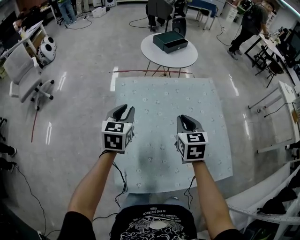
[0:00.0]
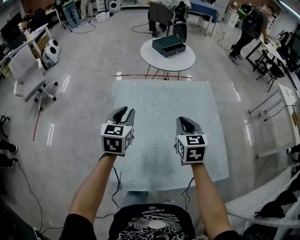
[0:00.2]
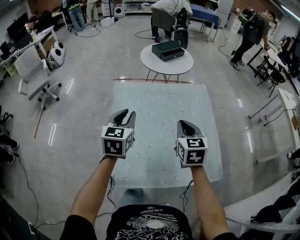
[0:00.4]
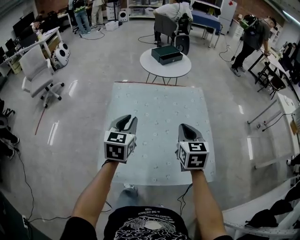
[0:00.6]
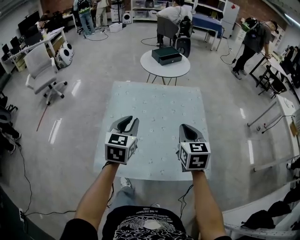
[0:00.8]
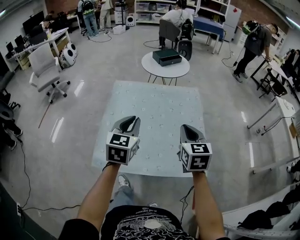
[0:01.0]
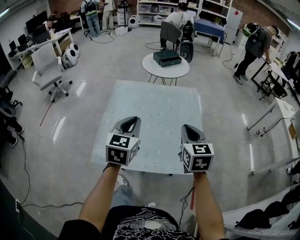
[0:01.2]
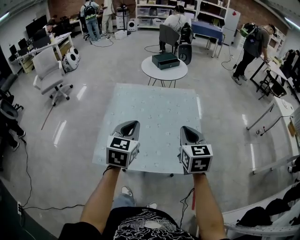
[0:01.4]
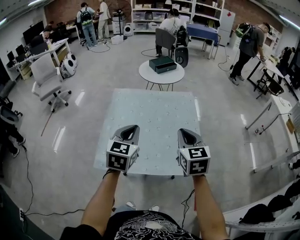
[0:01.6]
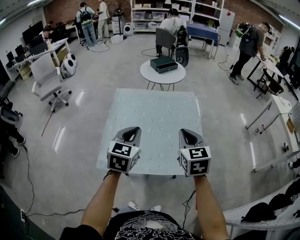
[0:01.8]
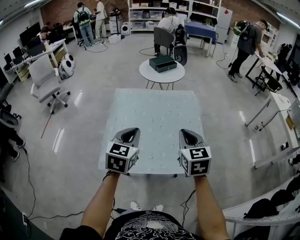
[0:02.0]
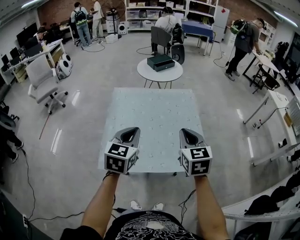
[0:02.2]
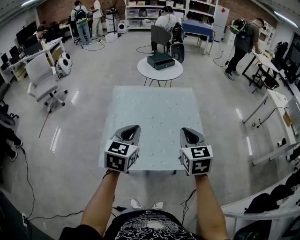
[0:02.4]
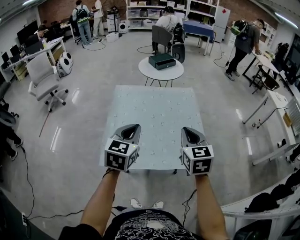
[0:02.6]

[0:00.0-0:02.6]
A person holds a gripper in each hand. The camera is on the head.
0:00.0 to 0:01.2: The right gripper moves to the right, backward and upward, approximately 25 cm. The left gripper goes roughly 30 cm backward, to the right and upward.
0:01.2 to 0:02.6: The grippers both shift backward by about 5 cm.

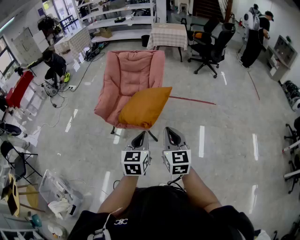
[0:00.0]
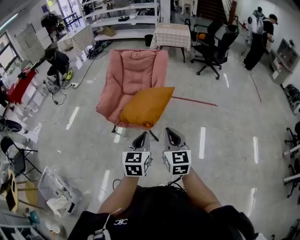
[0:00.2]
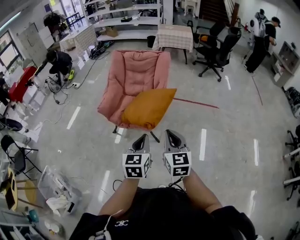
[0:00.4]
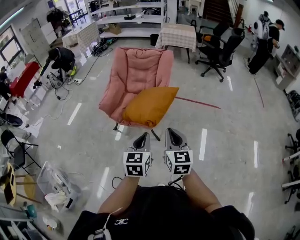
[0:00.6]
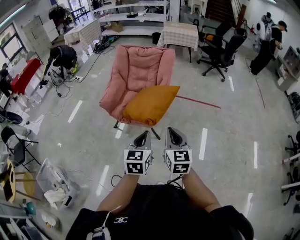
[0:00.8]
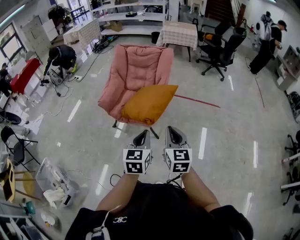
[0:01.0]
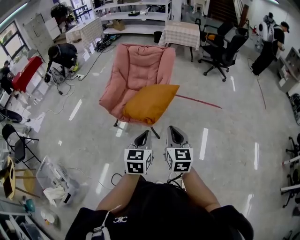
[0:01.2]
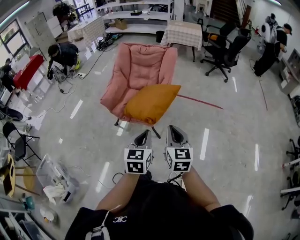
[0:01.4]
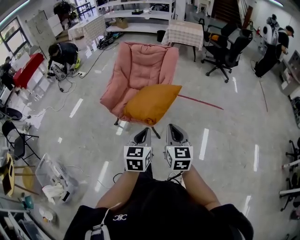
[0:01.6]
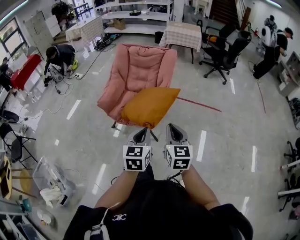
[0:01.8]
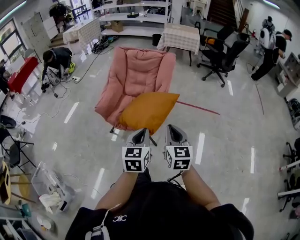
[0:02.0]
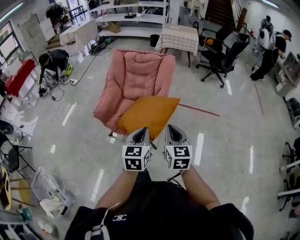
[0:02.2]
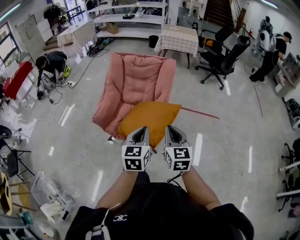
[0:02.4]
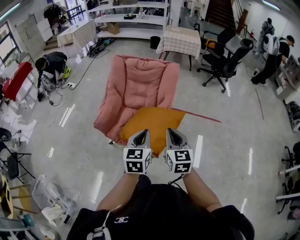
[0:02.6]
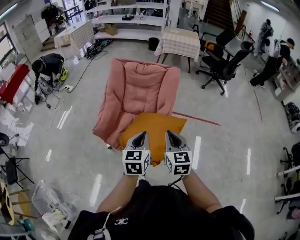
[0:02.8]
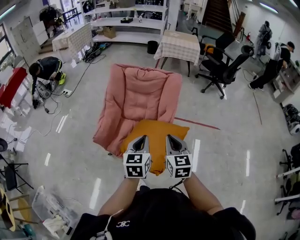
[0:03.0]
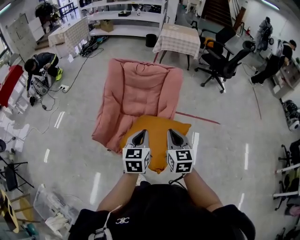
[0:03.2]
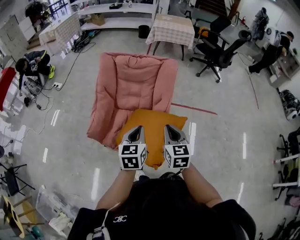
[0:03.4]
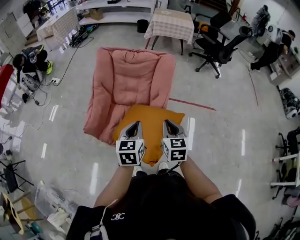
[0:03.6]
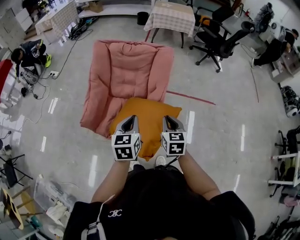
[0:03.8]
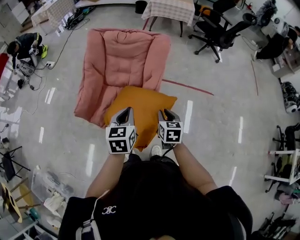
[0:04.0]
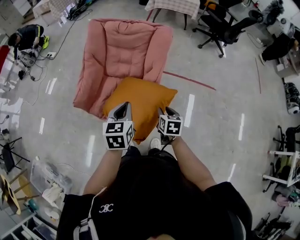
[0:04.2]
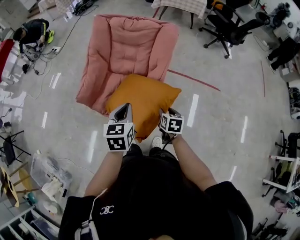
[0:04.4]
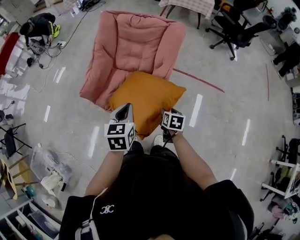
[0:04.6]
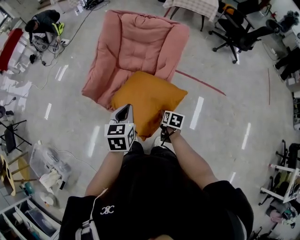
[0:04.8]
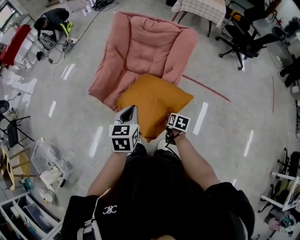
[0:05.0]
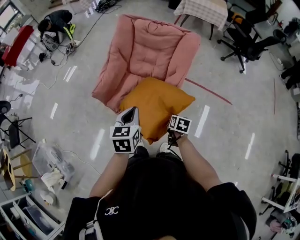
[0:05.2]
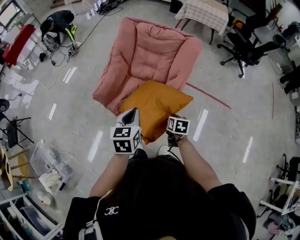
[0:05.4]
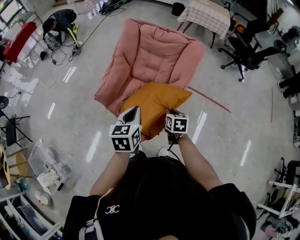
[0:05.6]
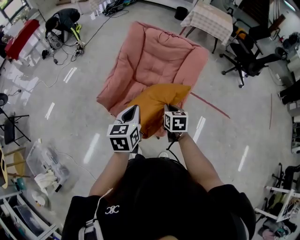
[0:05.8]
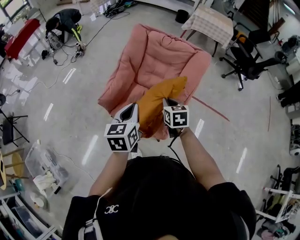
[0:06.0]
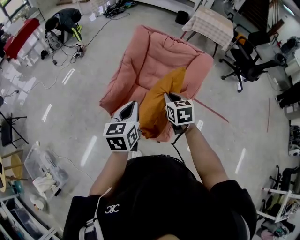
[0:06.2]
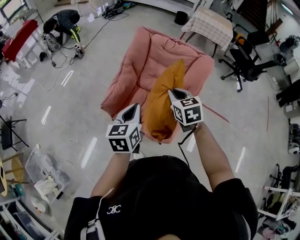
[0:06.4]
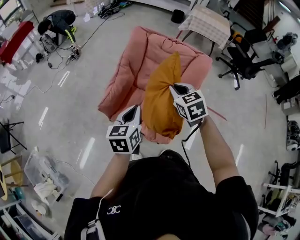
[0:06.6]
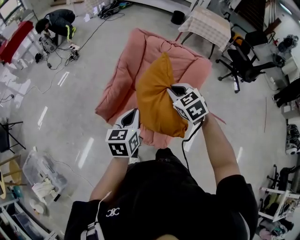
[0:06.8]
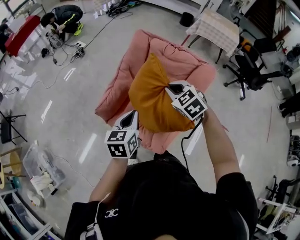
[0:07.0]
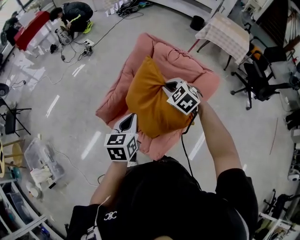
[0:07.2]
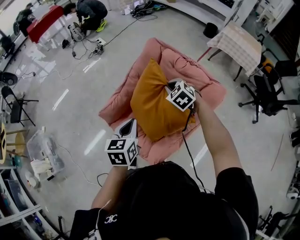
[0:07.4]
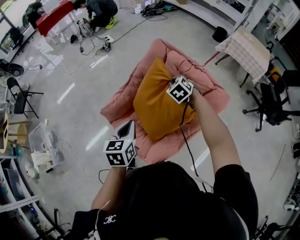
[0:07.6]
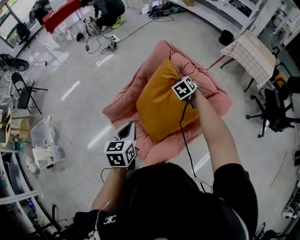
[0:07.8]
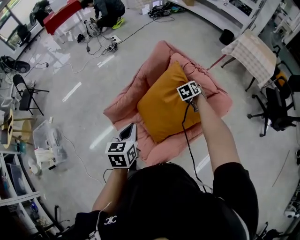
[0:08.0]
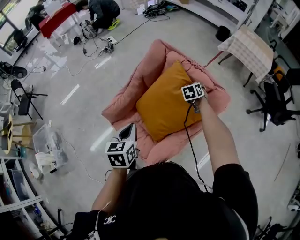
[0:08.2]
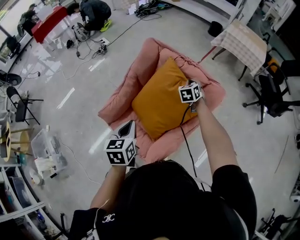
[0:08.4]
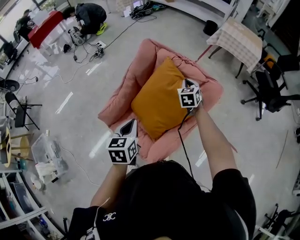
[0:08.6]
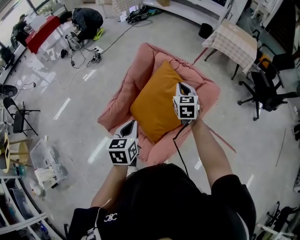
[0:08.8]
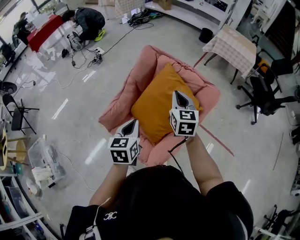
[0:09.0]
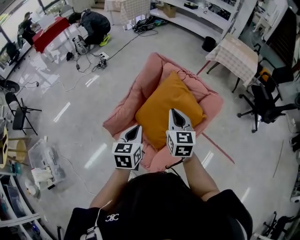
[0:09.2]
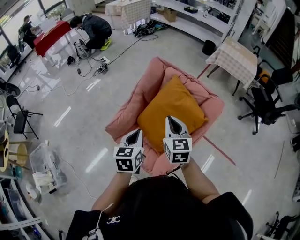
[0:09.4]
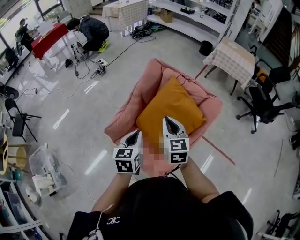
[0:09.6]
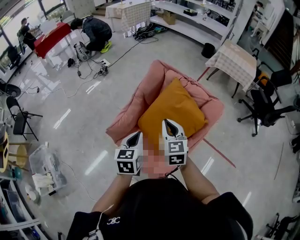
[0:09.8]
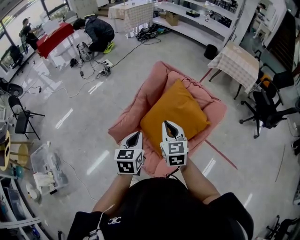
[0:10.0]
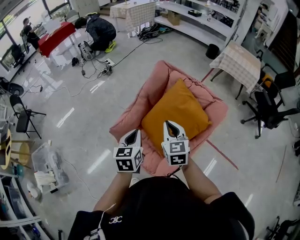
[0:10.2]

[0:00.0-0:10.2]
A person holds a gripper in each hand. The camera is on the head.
0:00.0 to 0:01.4: The grippers stay close to where they were, moving slightly.
0:01.4 to 0:03.0: The two grippers go roughly 30 cm forward.
0:03.0 to 0:04.4: The right gripper heads downward and to the right, covering some 25 cm, angles its fingers downward, by roughly 30 degrees, and opens its fingers, while the left gripper travels downward by roughly 5 cm.
0:04.4 to 0:05.8: The left gripper heads to the left, covering roughly 10 cm. The right gripper travels to the left, forward and upward by some 20 cm, swivels about 20 degrees, and closes up.
0:05.8 to 0:07.2: The left gripper travels forward by approximately 10 cm; the right gripper travels forward and upward by roughly 25 cm, and rotates around the line of its fingers by about 60 degrees, counterclockwise from behind.
0:07.2 to 0:08.8: The right gripper is displaced to the right and forward by roughly 10 cm, rotates approximately 50 degrees, and opens and closes again.
0:08.8 to 0:10.2: The right gripper travels backward and to the left by some 20 cm. The left gripper goes about 5 cm to the left.

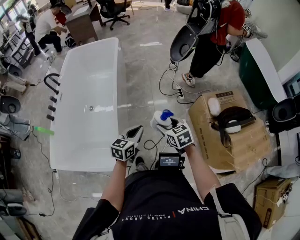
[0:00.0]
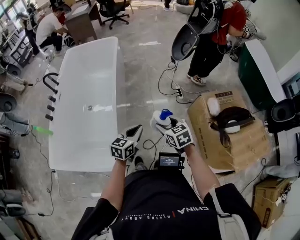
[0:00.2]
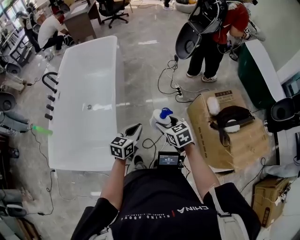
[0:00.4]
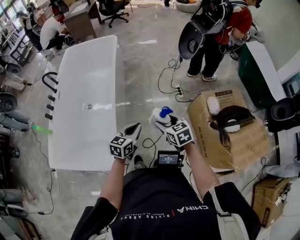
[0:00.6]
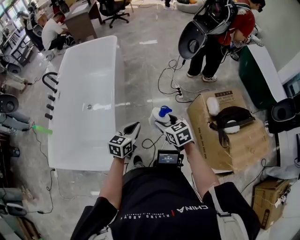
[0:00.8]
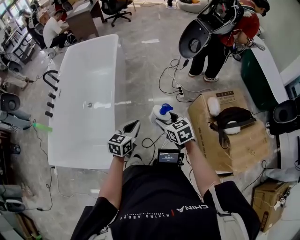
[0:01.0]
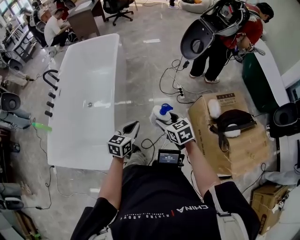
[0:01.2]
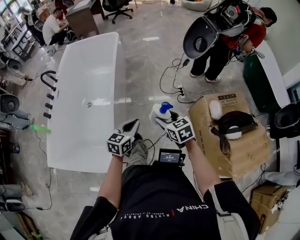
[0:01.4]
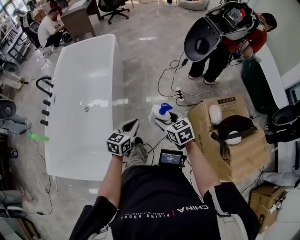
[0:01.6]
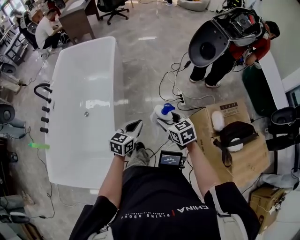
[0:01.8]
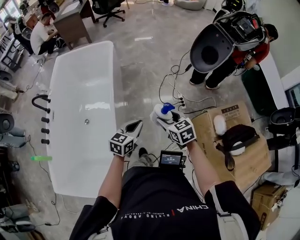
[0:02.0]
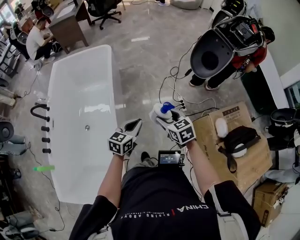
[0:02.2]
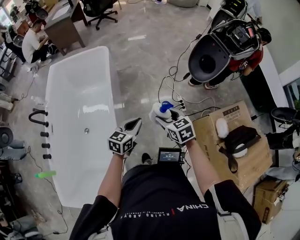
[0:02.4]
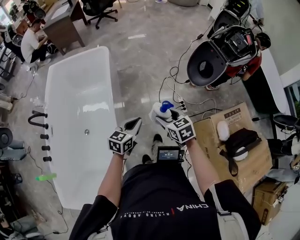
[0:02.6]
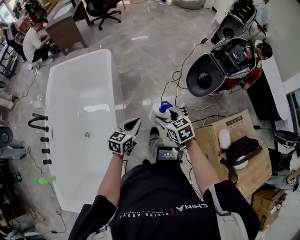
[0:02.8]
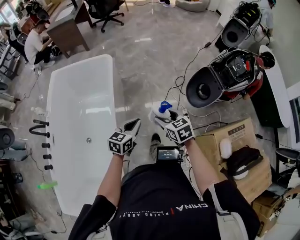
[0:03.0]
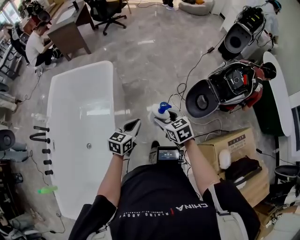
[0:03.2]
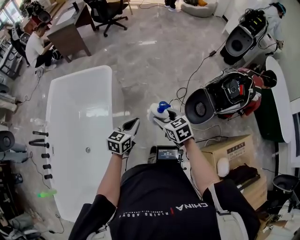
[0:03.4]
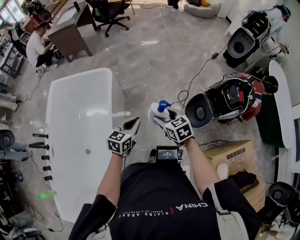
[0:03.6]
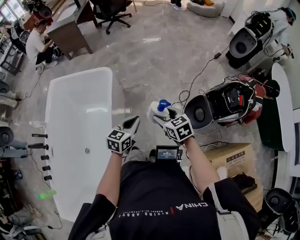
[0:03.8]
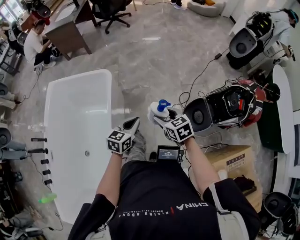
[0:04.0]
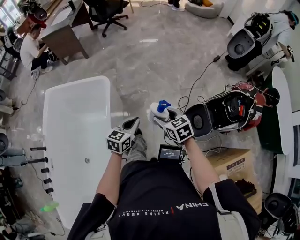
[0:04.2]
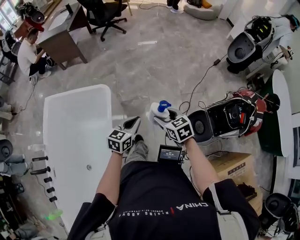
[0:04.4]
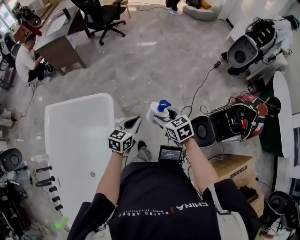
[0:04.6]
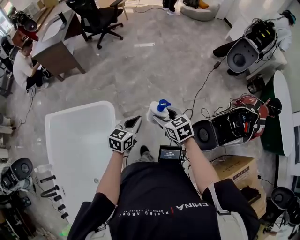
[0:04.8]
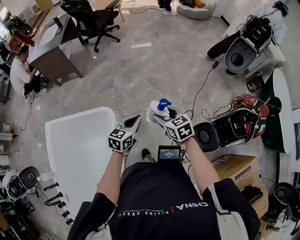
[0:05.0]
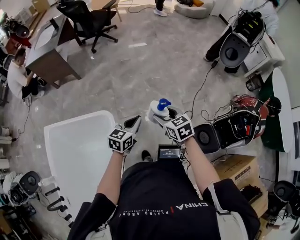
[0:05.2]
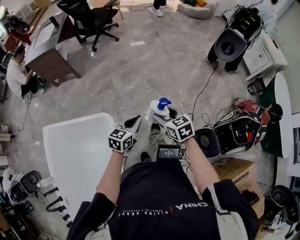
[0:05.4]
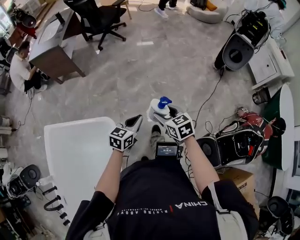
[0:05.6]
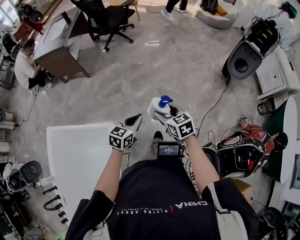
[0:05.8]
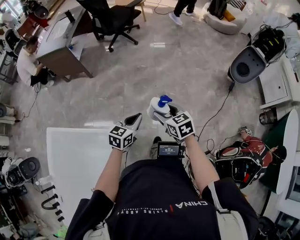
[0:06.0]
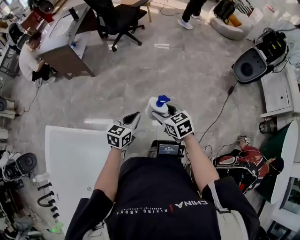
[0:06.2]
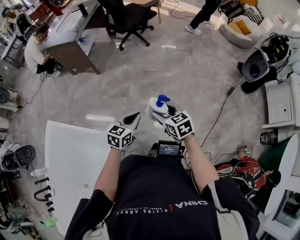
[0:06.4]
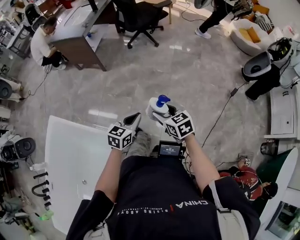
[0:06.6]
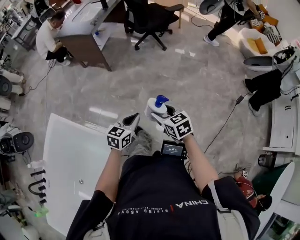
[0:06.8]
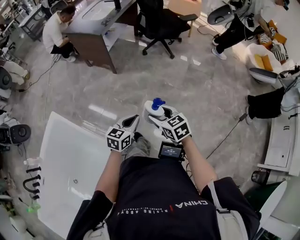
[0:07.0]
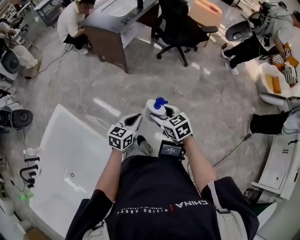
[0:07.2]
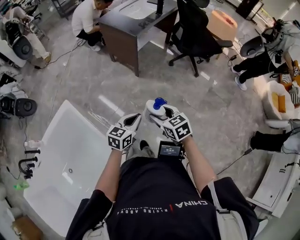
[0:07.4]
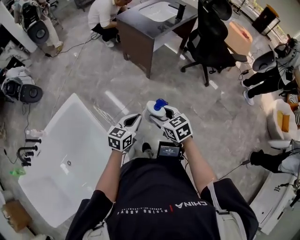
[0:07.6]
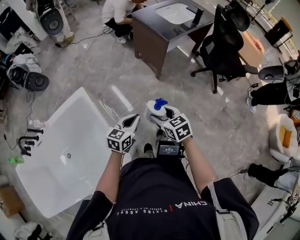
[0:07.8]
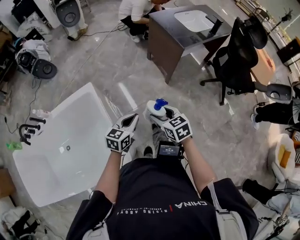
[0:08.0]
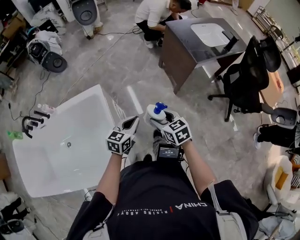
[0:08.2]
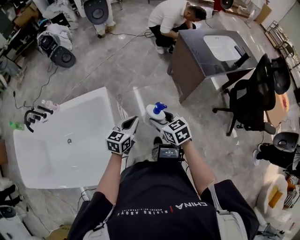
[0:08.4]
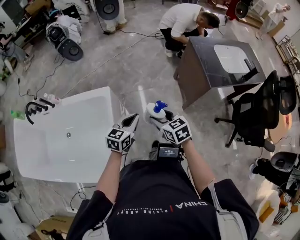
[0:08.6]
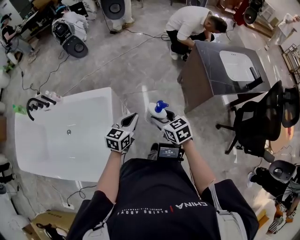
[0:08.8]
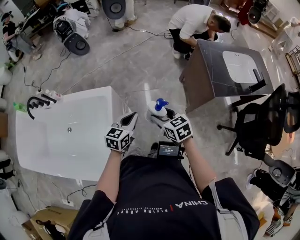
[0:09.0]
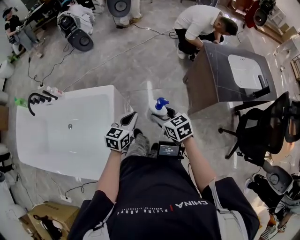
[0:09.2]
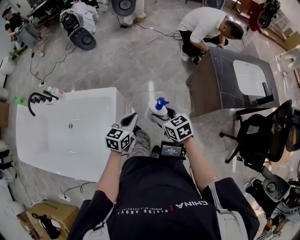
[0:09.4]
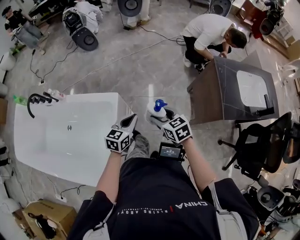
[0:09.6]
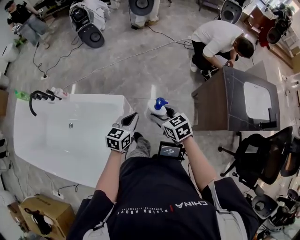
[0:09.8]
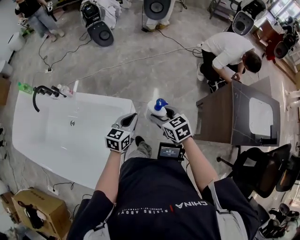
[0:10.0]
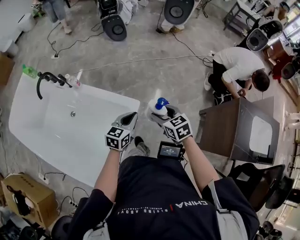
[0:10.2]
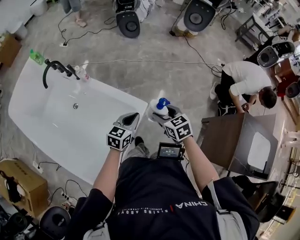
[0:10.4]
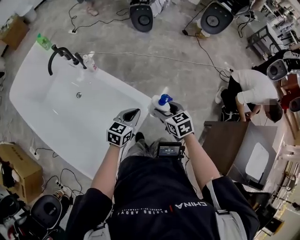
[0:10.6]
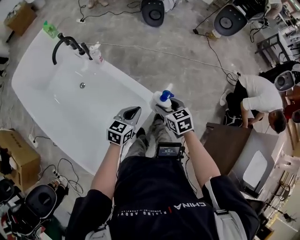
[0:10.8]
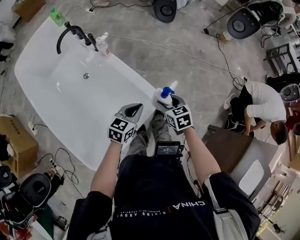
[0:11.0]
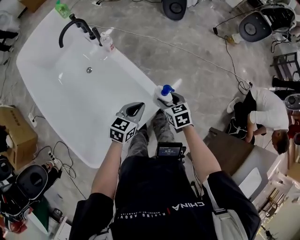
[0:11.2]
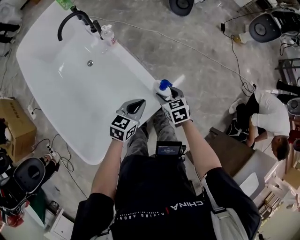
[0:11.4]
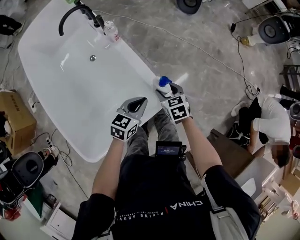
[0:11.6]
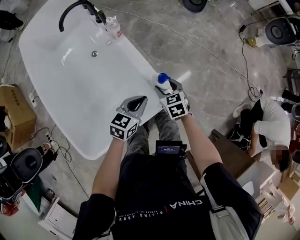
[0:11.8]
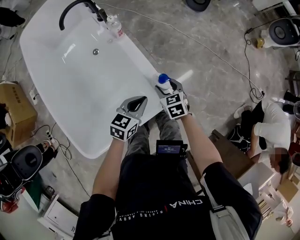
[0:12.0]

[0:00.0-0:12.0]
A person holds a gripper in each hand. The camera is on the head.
0:00.0 to 0:01.6: The grippers both shift forward by about 15 cm.
0:01.6 to 0:03.0: Both grippers move forward, approximately 35 cm.
0:03.0 to 0:04.4: Both grippers move forward, roughly 40 cm.
0:04.4 to 0:06.0: The two grippers travel together, forward, approximately 40 cm.
0:06.0 to 0:07.6: The pair of grippers is taken about 50 cm. The right gripper changes its angle by some 50 degrees. Meanwhile the left gripper changes its angle by approximately 50 degrees.
0:07.6 to 0:09.0: The left gripper changes place by about 30 cm, and rotates roughly 40 degrees. The right gripper moves about 35 cm, and swivels approximately 40 degrees.
0:09.0 to 0:10.4: Both grippers move forward and to the left, approximately 30 cm. The right gripper changes its angle by about 30 degrees. Meanwhile the left gripper turns by some 20 degrees.
0:10.4 to 0:12.0: The left gripper moves downward, forward and to the left, some 15 cm, and swivels approximately 30 degrees. Meanwhile the right gripper shifts approximately 30 cm downward, forward and to the left, and rotates some 20 degrees.
